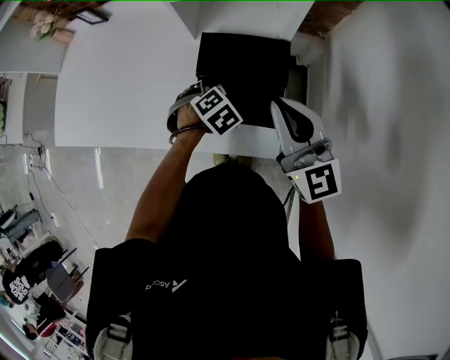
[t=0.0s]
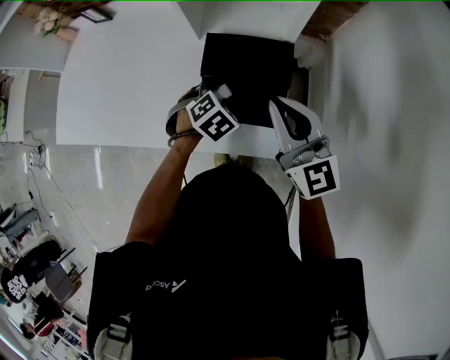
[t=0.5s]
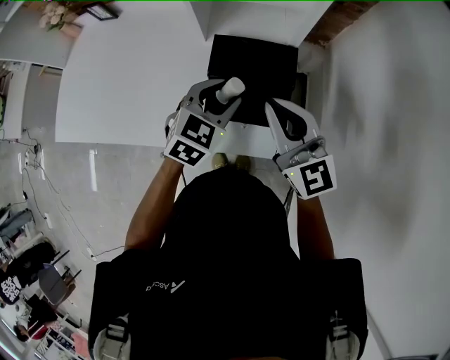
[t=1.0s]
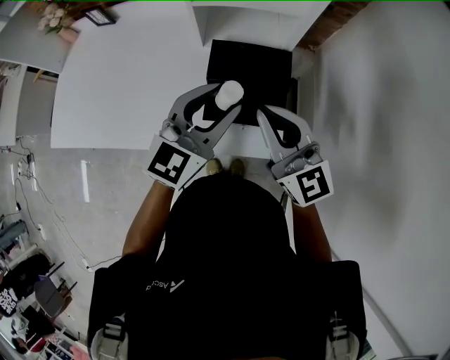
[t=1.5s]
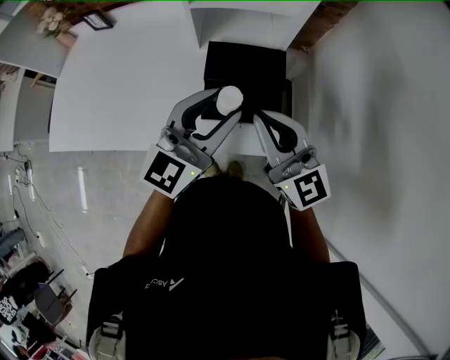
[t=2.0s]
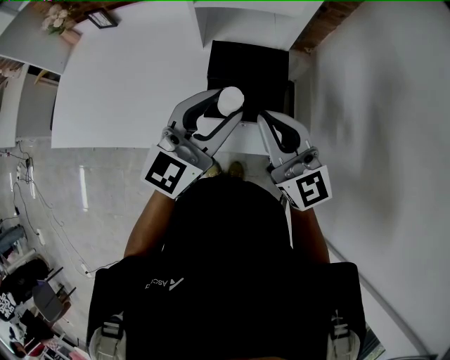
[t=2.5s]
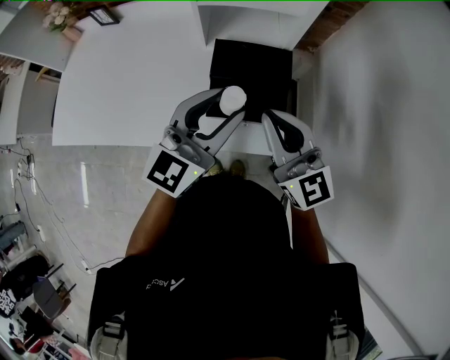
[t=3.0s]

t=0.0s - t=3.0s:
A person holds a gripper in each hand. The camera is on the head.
t=0.0s - t=1.5s: The left gripper goes about 25 cm upward, and tips its fingers upward by roughly 70 degrees, while the right gripper goes some 5 cm to the left.
t=1.5s - t=3.0s: The grippers make only small movements.

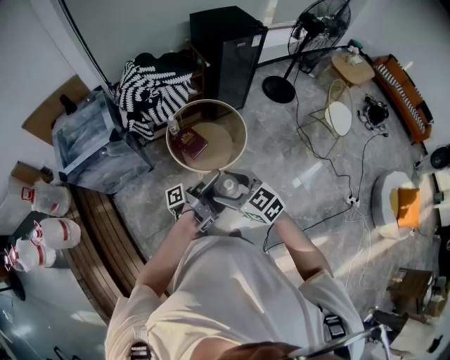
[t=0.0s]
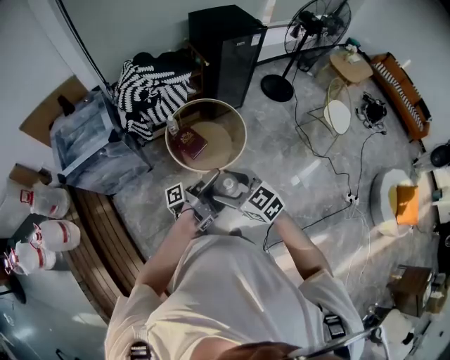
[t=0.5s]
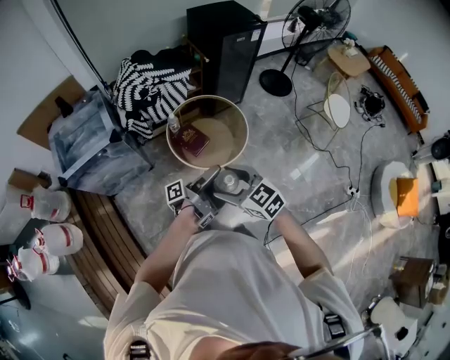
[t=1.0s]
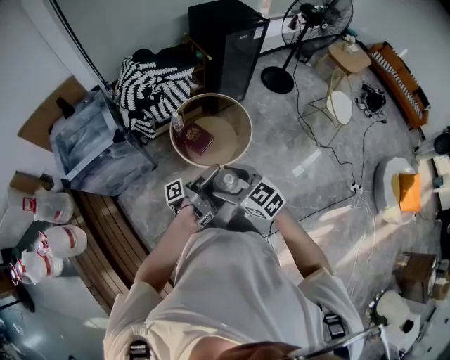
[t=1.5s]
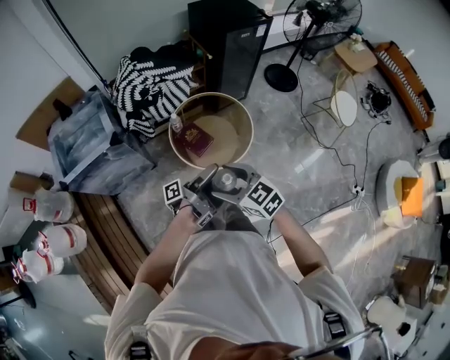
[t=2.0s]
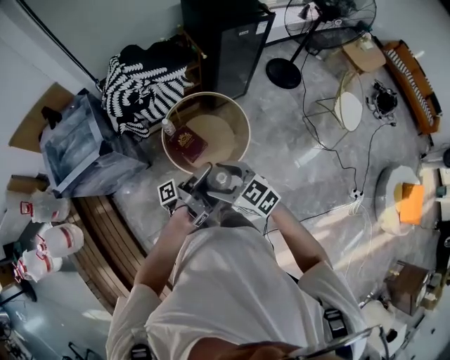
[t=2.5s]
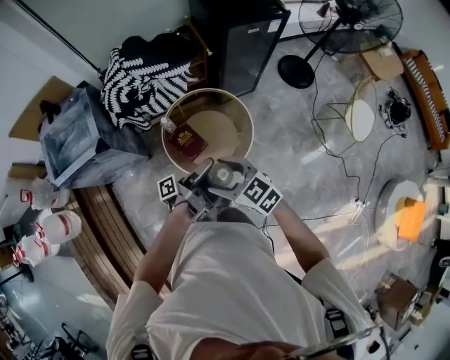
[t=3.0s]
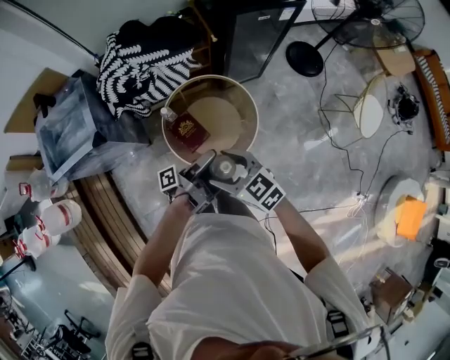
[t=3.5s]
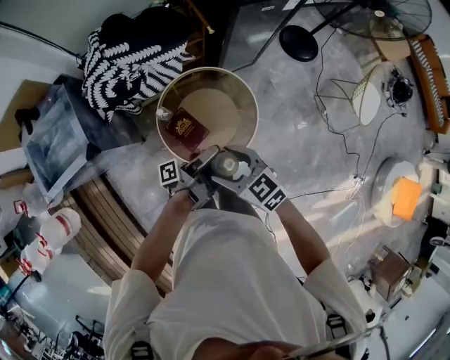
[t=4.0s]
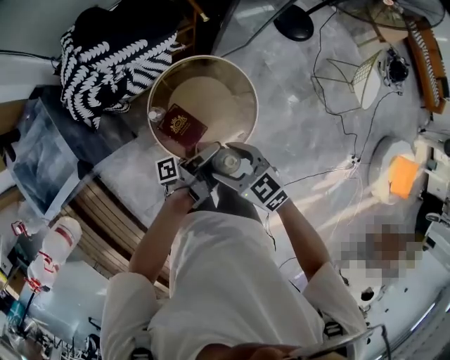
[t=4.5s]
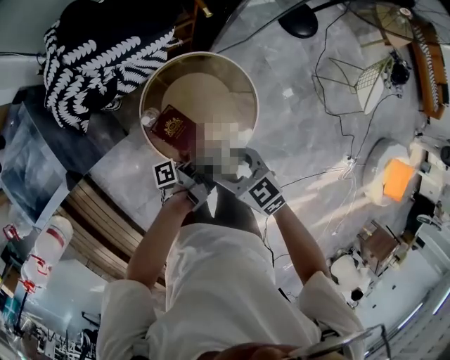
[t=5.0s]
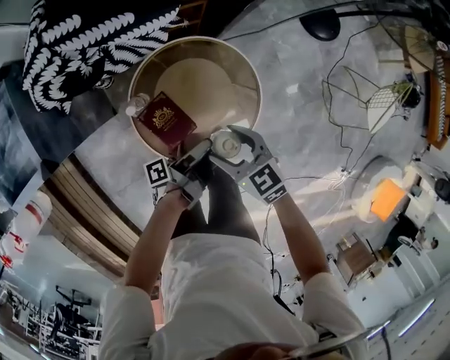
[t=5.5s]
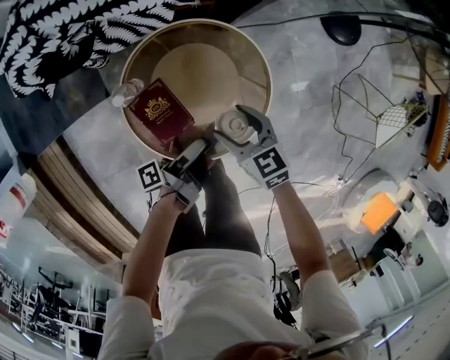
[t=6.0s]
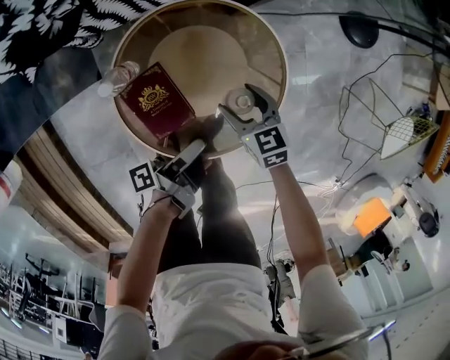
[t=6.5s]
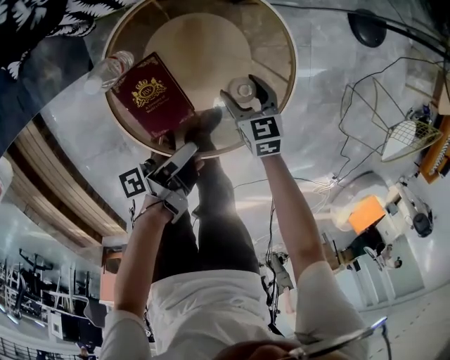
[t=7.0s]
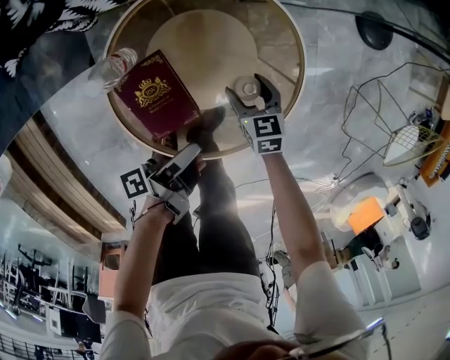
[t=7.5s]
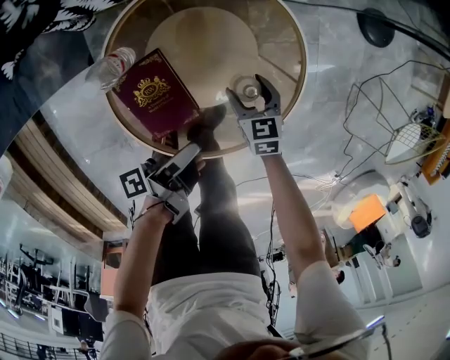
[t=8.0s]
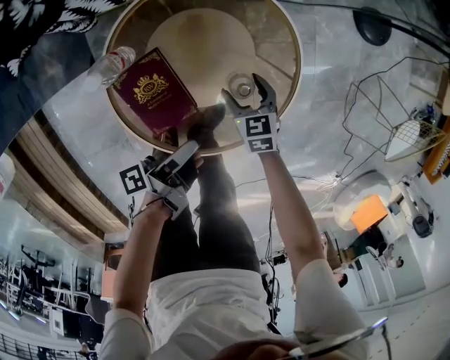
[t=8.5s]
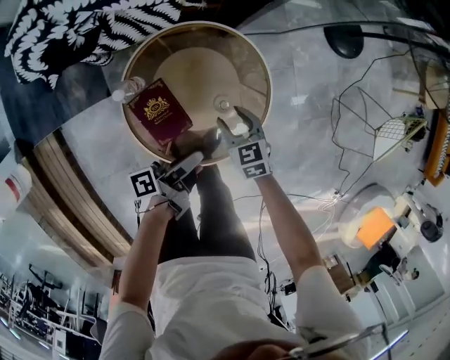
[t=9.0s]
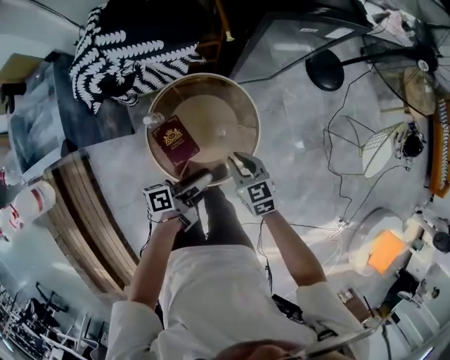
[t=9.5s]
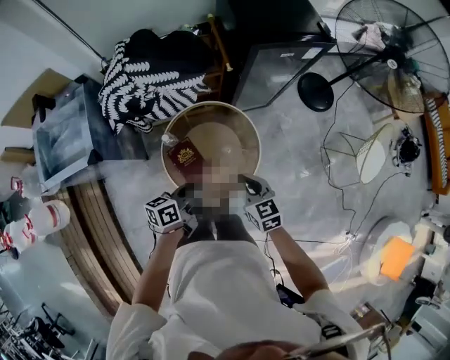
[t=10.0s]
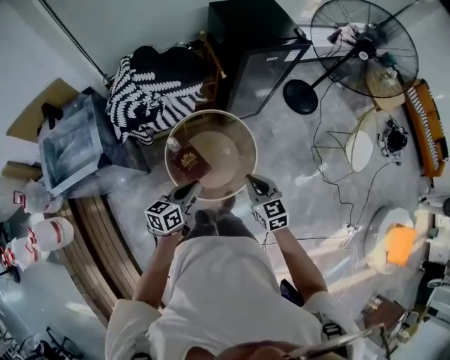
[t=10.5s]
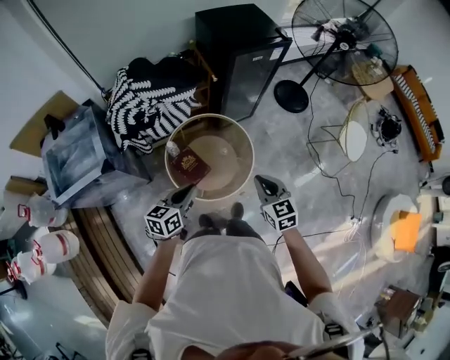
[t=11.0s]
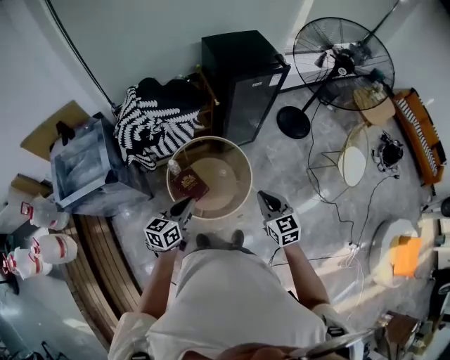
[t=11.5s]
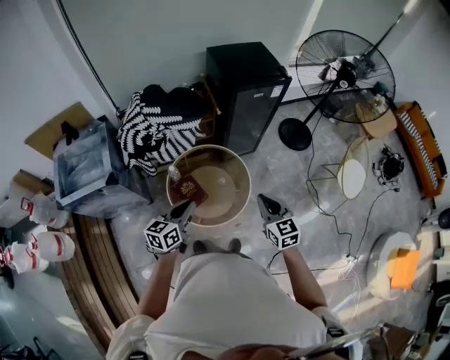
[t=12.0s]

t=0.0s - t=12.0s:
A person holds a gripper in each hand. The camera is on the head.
t=0.0s - t=2.0s: The right gripper shifts by approximately 10 cm.
t=2.0s - t=4.0s: The right gripper ends up approximately 30 cm from where it was.
t=4.0s - t=6.0s: The right gripper moves downward, roughly 35 cm.
t=6.0s - t=8.0s: The right gripper is displaced downward by approximately 25 cm.
t=8.0s - t=10.0s: The right gripper heads upward, covering roughly 50 cm, and closes its fingers.
t=10.0s - t=12.0s: The right gripper goes roughly 15 cm upward.

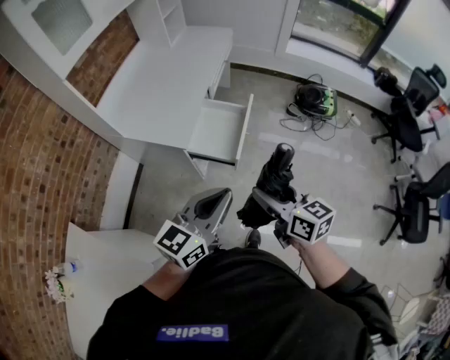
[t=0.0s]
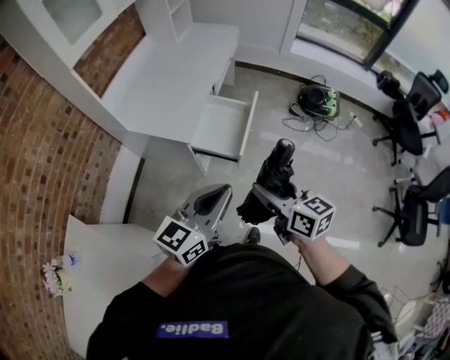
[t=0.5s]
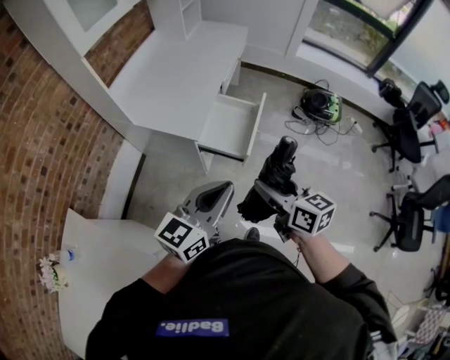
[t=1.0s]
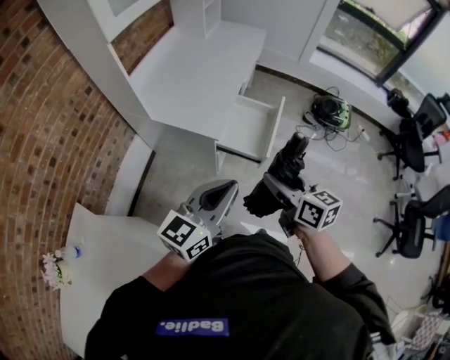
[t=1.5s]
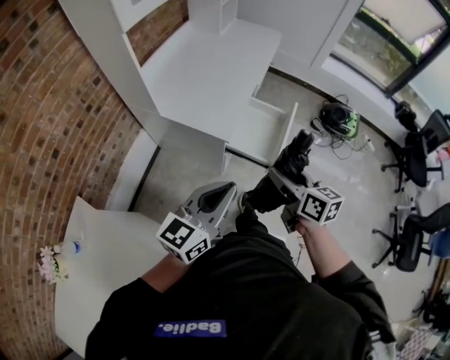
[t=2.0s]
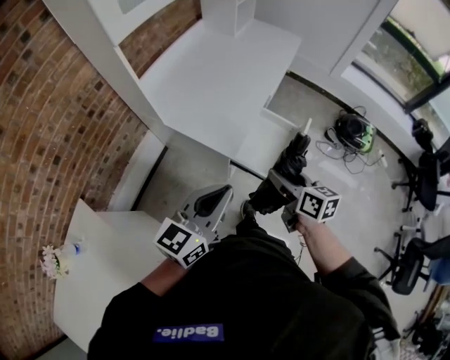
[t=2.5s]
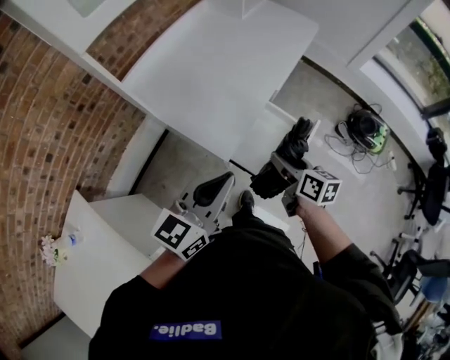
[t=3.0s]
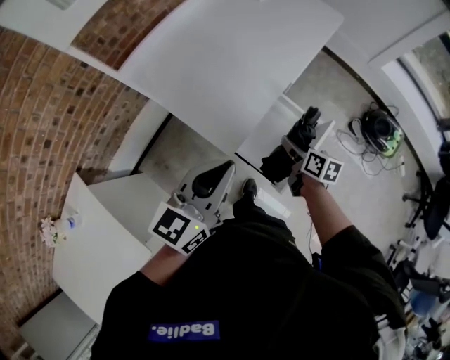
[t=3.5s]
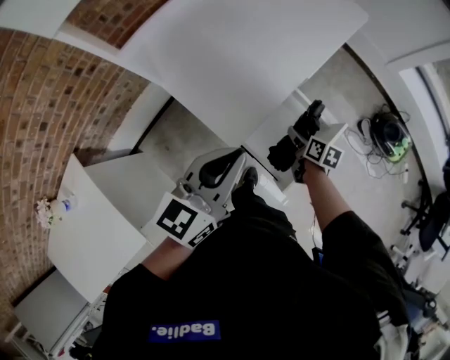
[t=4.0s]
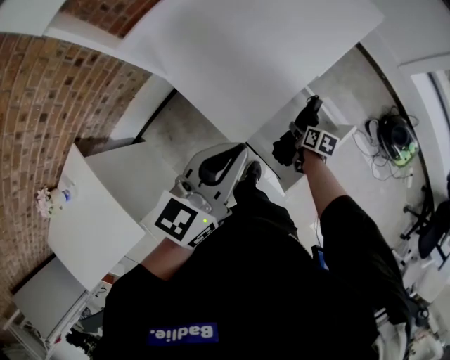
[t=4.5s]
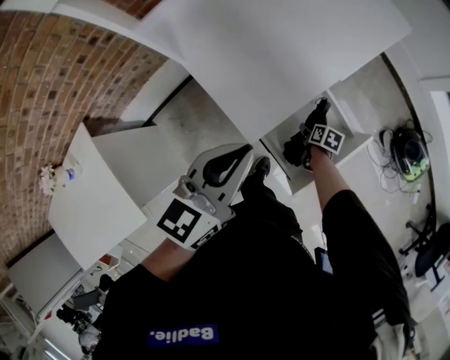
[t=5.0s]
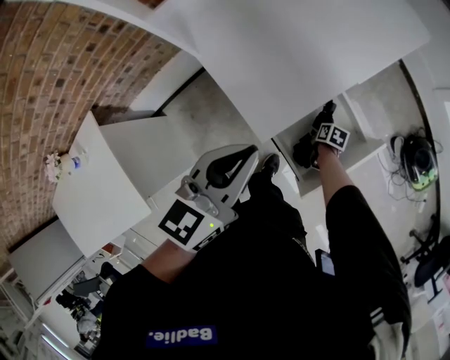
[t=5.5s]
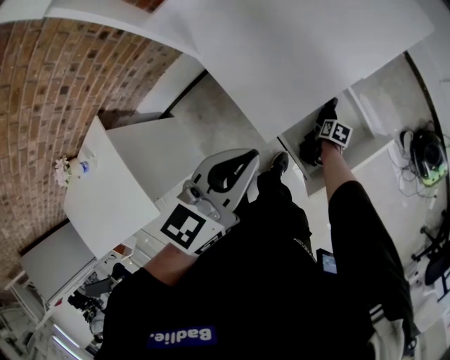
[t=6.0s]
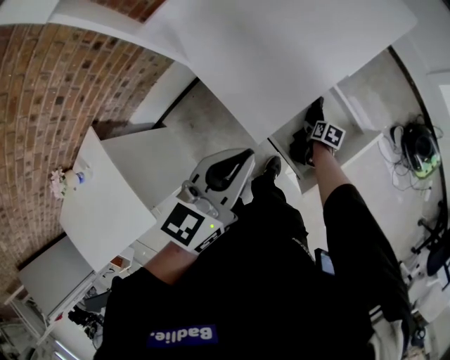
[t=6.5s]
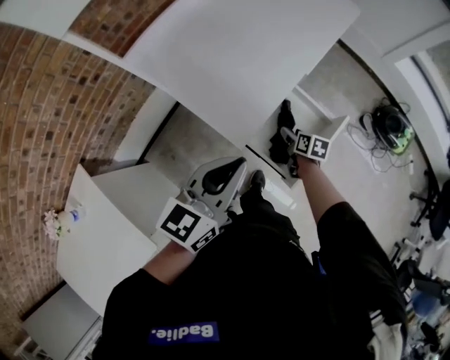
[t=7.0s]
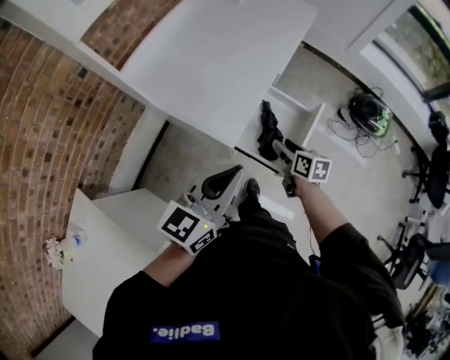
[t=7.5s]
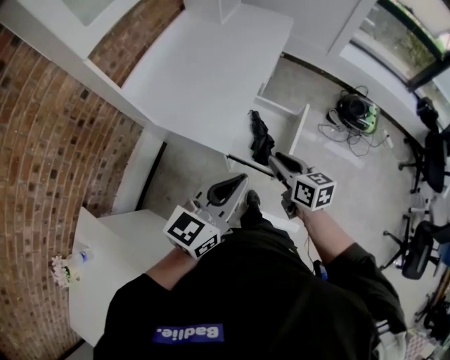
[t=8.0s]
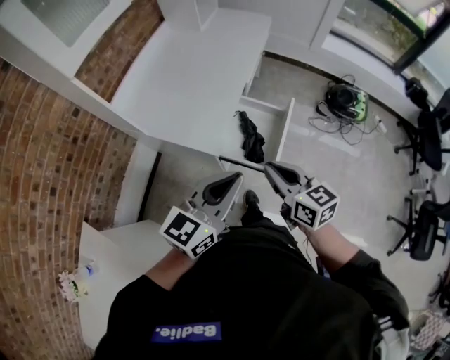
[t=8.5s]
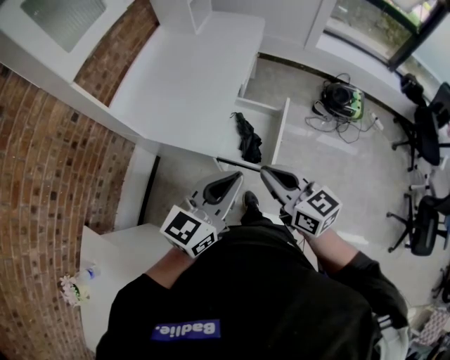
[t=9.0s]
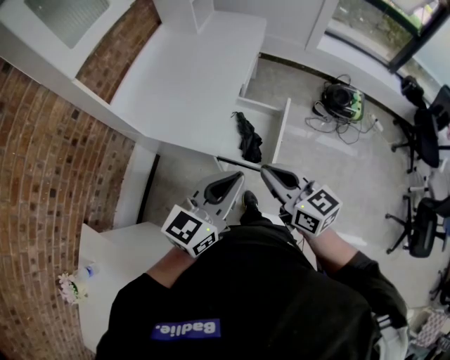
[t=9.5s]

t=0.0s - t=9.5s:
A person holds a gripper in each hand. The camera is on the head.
t=0.0s - t=2.0s: The left gripper is displaced to the left by some 15 cm. The right gripper is displaced to the left and forward by some 15 cm.
t=2.0s - t=4.0s: The left gripper shifts some 25 cm forward, and changes its angle by roughly 20 degrees, while the right gripper goes about 40 cm forward and downward, and swivels about 30 degrees.
t=4.0s - t=5.5s: The right gripper is displaced downward by about 20 cm, and changes its angle by approximately 30 degrees.
t=5.5s - t=7.5s: The right gripper travels upward by about 30 cm, and tilts its fingers roughly 30 degrees upward; the left gripper shifts by roughly 10 cm, and turns by approximately 30 degrees.
t=7.5s - t=9.5s: The right gripper goes approximately 30 cm upward and backward, swivels some 30 degrees, and closes up; the left gripper heads backward and to the right, covering approximately 10 cm.

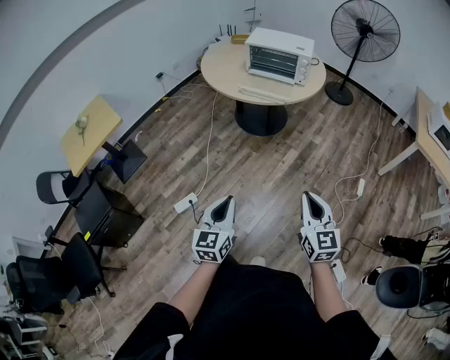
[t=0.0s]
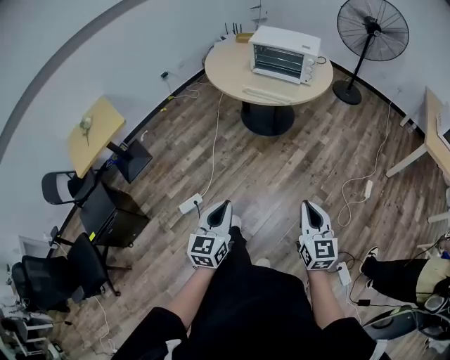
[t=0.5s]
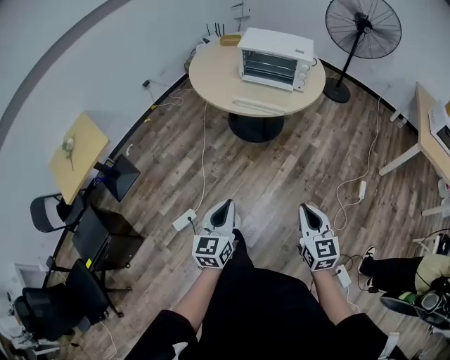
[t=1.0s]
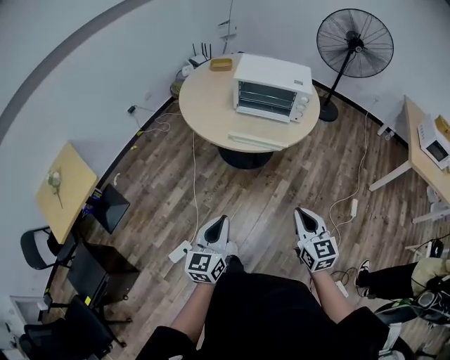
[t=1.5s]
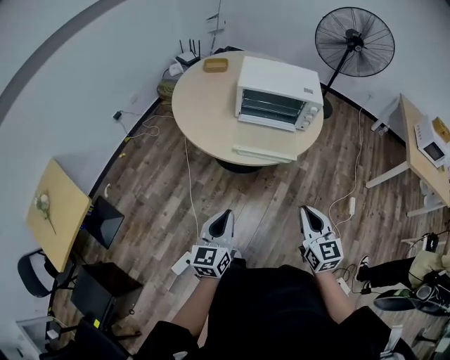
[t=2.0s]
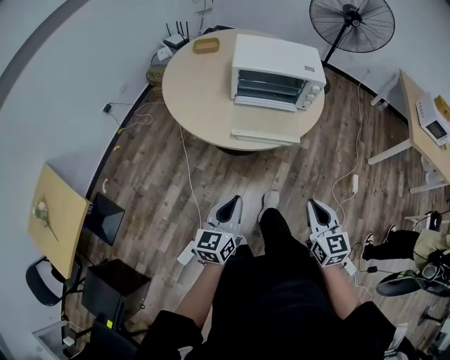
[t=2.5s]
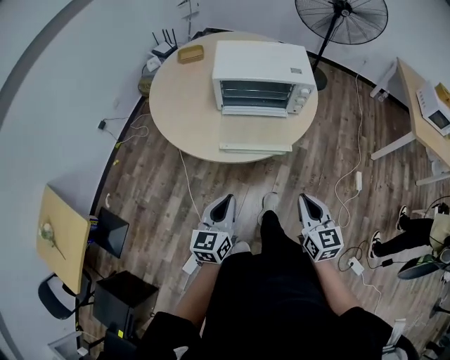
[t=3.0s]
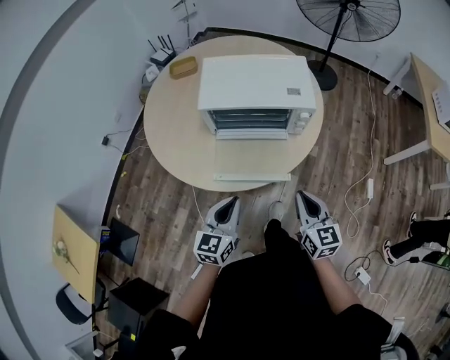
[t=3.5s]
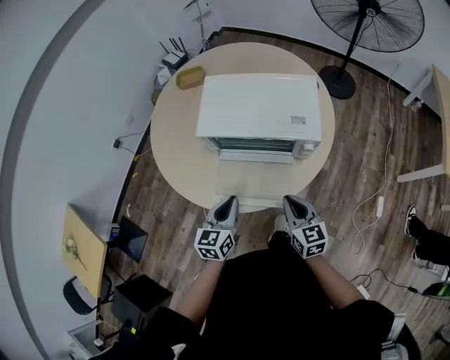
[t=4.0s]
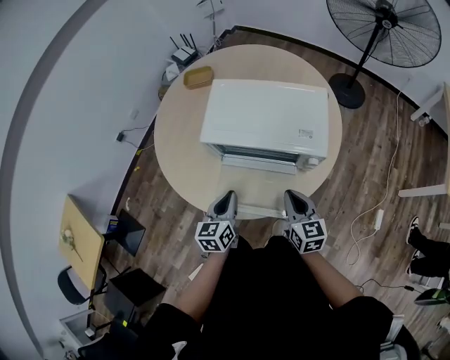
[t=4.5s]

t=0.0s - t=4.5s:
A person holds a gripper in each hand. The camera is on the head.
t=0.0s - t=2.0s: The two grippers travel together, forward, about 40 cm.
t=2.0s - t=4.5s: The pair of grippers is taken forward, roughly 40 cm.
